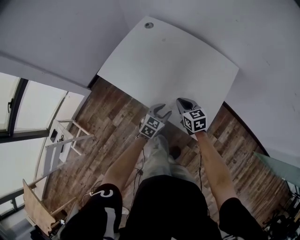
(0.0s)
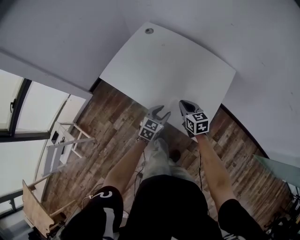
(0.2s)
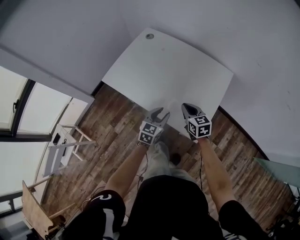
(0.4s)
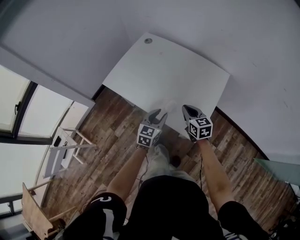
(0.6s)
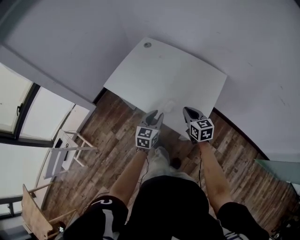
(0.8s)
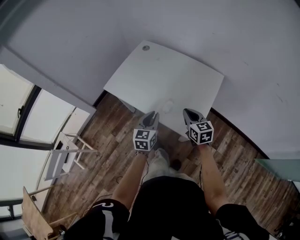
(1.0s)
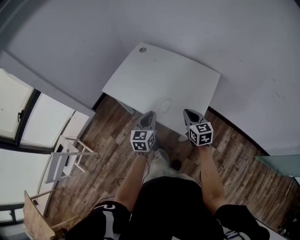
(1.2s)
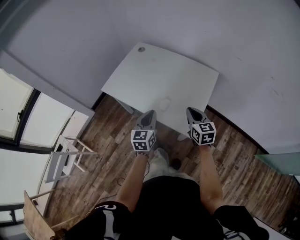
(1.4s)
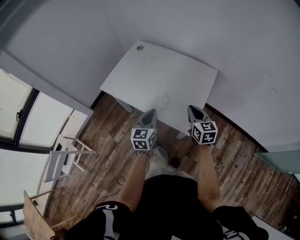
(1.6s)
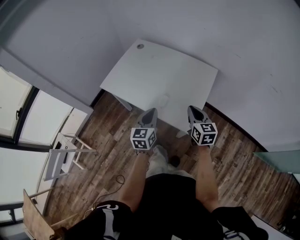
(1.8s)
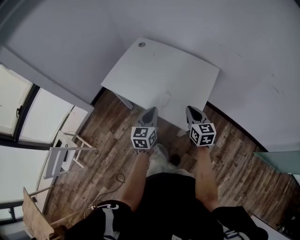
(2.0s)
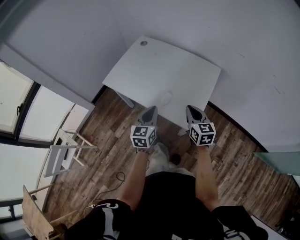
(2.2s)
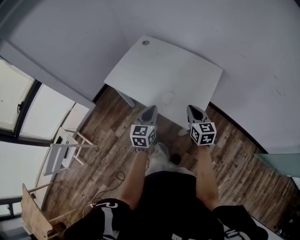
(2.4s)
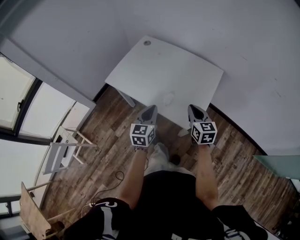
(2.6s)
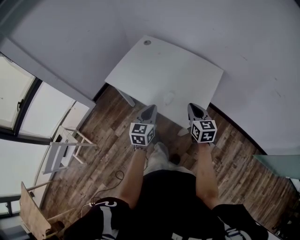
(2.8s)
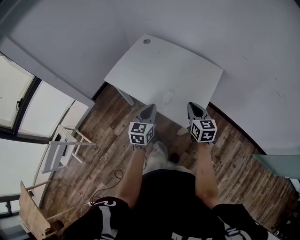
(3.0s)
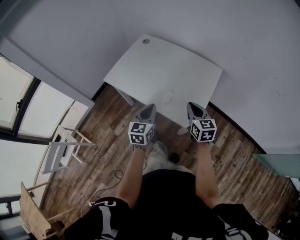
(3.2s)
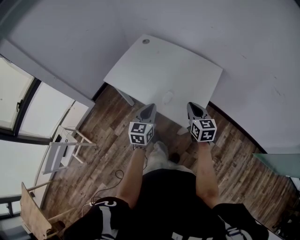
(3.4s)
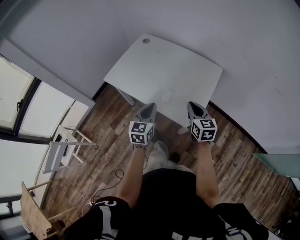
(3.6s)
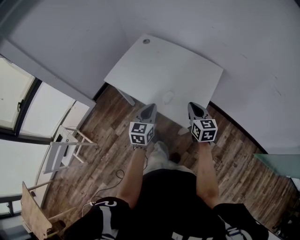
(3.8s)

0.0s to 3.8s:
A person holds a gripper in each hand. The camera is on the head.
0.0s to 1.2s: The left gripper heads upward, covering roughly 20 cm, changes its angle by roughly 30 degrees, and closes up, while the right gripper travels upward, backward and to the right by some 20 cm.
1.2s to 2.6s: The grippers move only a little.
2.6s to 3.8s: Both grippers stay put.

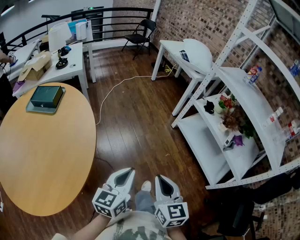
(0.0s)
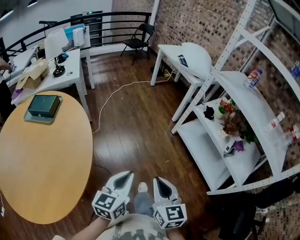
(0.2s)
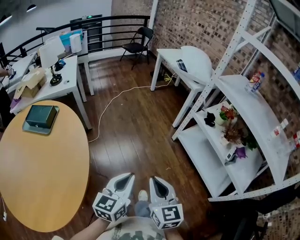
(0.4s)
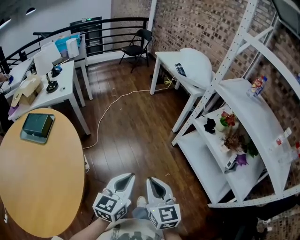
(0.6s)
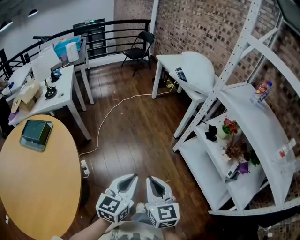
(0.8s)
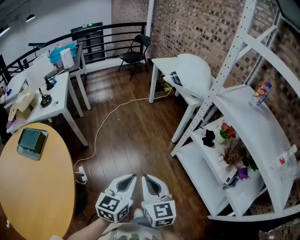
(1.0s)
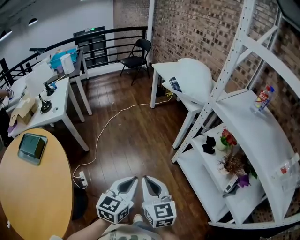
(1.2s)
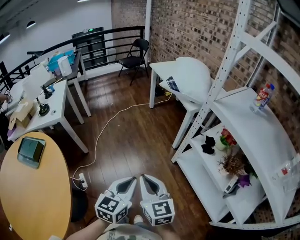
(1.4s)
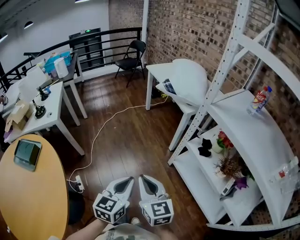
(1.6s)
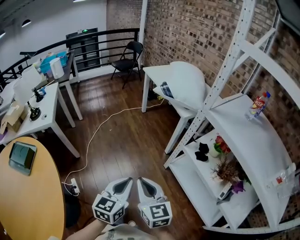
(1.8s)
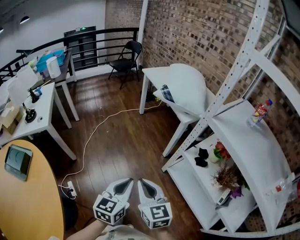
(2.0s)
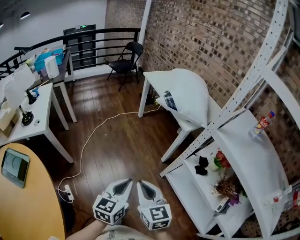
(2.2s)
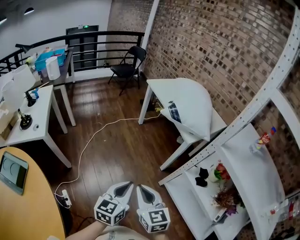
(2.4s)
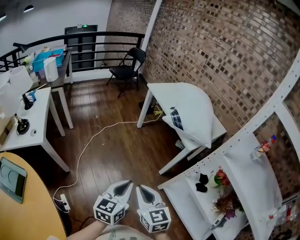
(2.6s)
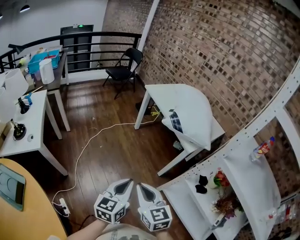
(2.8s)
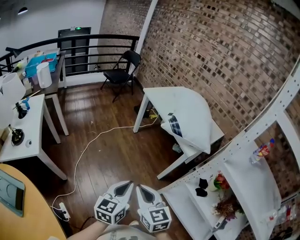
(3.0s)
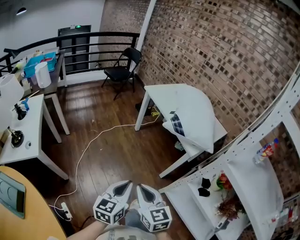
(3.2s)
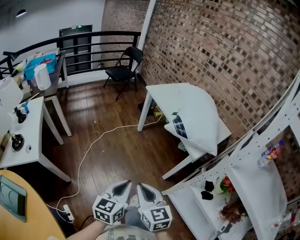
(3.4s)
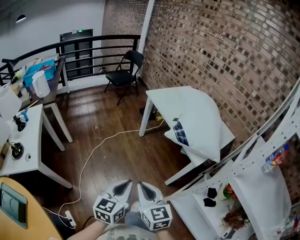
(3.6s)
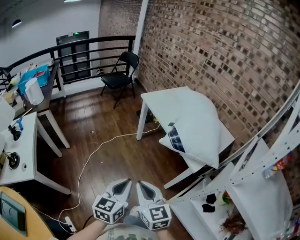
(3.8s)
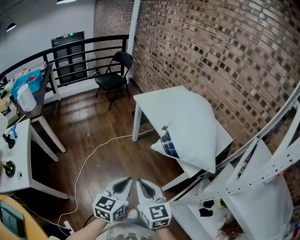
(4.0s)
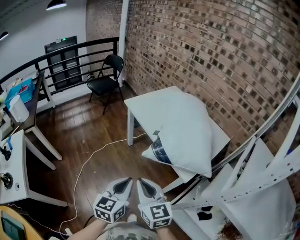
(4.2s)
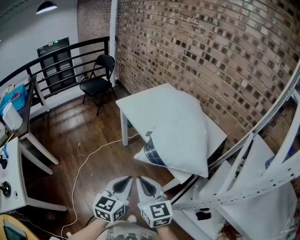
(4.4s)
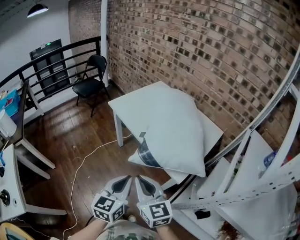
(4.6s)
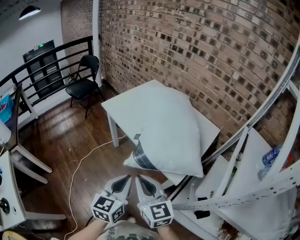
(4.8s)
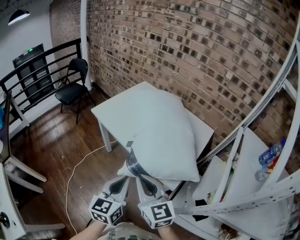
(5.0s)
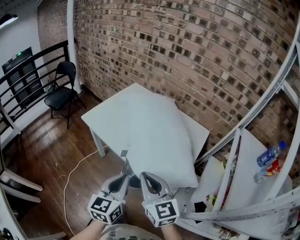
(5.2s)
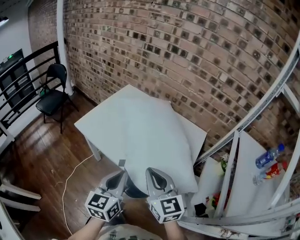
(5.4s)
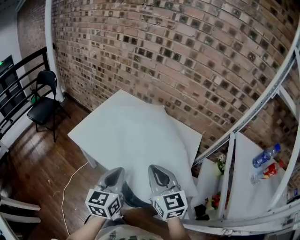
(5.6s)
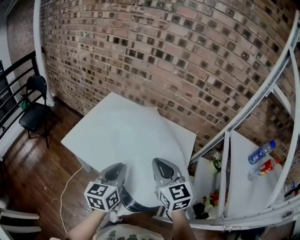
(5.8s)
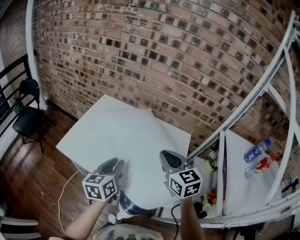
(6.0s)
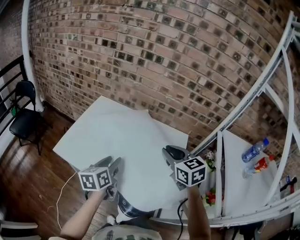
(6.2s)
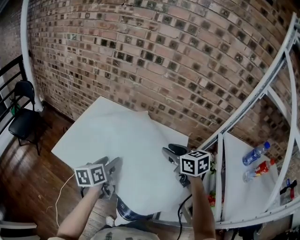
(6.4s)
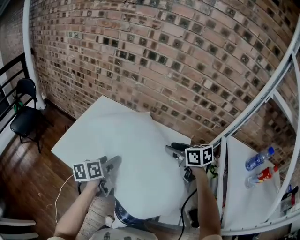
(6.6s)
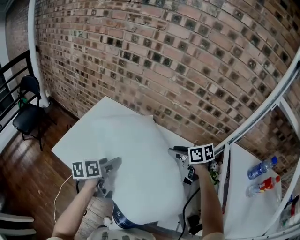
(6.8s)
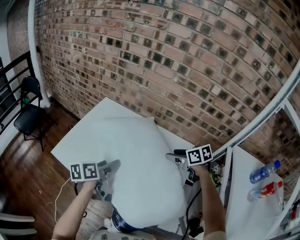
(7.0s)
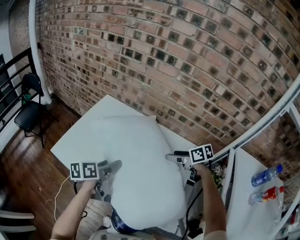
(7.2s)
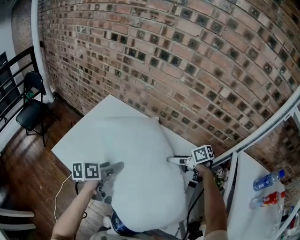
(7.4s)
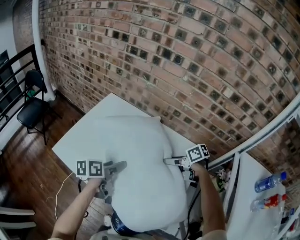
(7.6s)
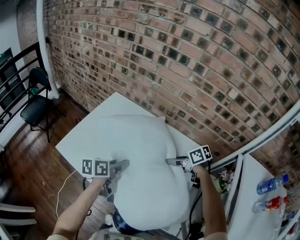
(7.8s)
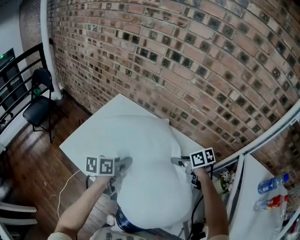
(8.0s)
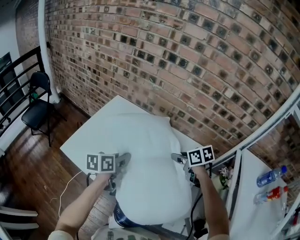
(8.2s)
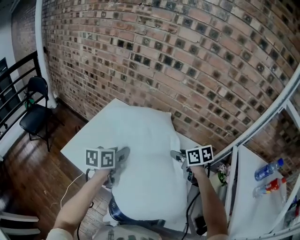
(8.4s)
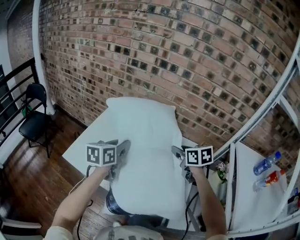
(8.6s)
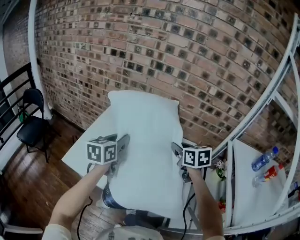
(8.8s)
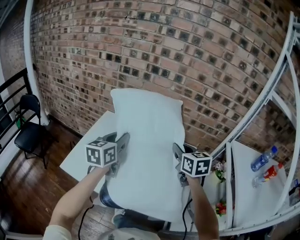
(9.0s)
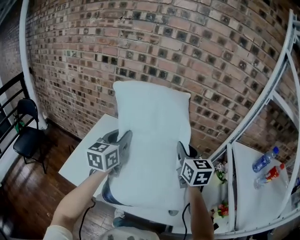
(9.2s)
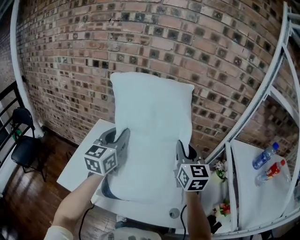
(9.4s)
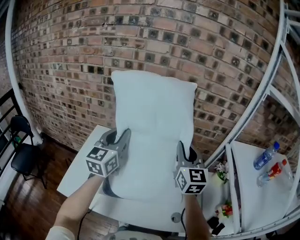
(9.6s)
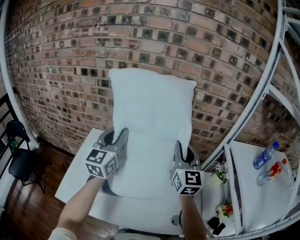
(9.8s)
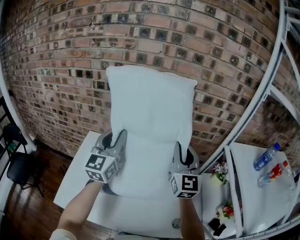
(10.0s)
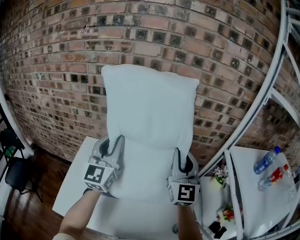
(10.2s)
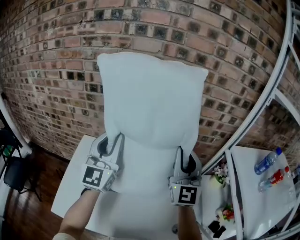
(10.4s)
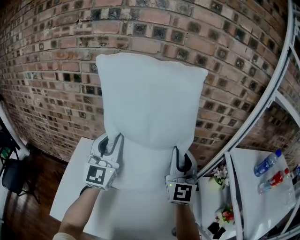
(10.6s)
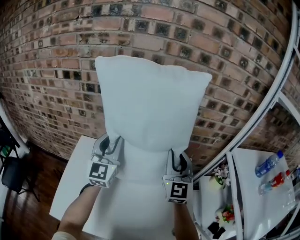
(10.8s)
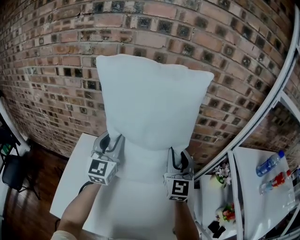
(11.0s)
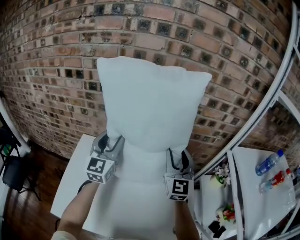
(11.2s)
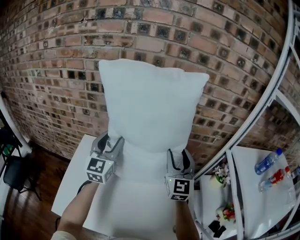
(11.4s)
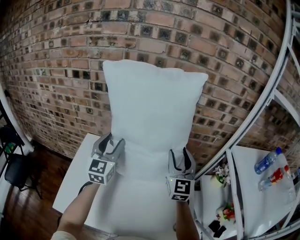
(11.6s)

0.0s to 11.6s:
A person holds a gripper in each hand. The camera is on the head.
0.0s to 1.4s: The left gripper travels forward and to the right by some 35 cm; the right gripper travels forward by some 35 cm.
1.4s to 2.8s: The left gripper travels forward by roughly 30 cm; the right gripper moves forward and to the left, roughly 30 cm.
2.8s to 4.4s: Both grippers move forward and to the right, about 35 cm.
4.4s to 5.8s: The right gripper moves roughly 35 cm, and turns by roughly 30 degrees; the left gripper changes place by approximately 35 cm, and rotates approximately 20 degrees.
5.8s to 7.2s: The left gripper shifts roughly 15 cm forward and downward, swivels approximately 40 degrees, and opens up, while the right gripper goes about 30 cm forward, to the right and downward, swivels some 50 degrees, and opens up.
7.2s to 8.8s: The right gripper goes approximately 10 cm upward and to the left, turns by about 40 degrees, and closes, while the left gripper travels upward and forward by some 15 cm, changes its angle by about 40 degrees, and closes its fingers.
8.8s to 10.2s: The left gripper heads forward and upward, covering roughly 20 cm, and points its fingers some 30 degrees further upward, while the right gripper moves upward and forward, approximately 15 cm, and tips its fingers upward by about 50 degrees.
10.2s to 11.6s: The two grippers go about 5 cm downward. The right gripper opens up.

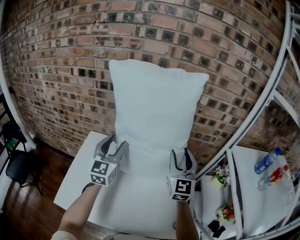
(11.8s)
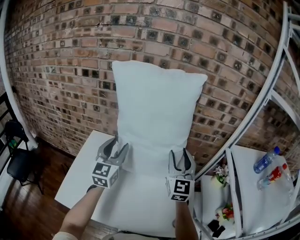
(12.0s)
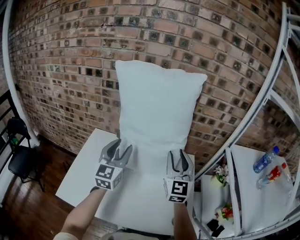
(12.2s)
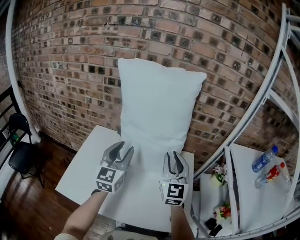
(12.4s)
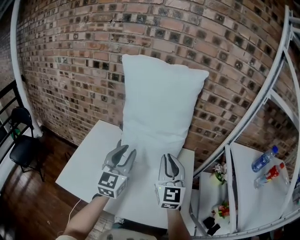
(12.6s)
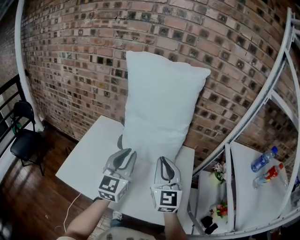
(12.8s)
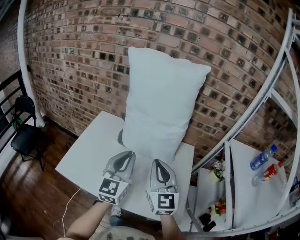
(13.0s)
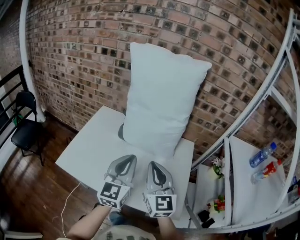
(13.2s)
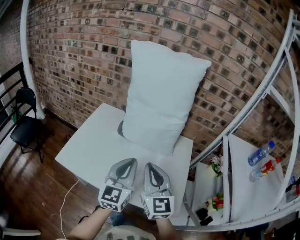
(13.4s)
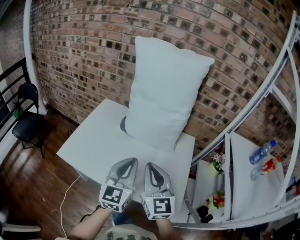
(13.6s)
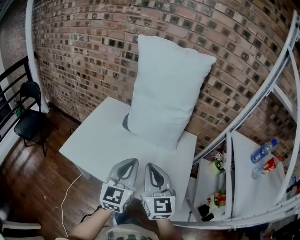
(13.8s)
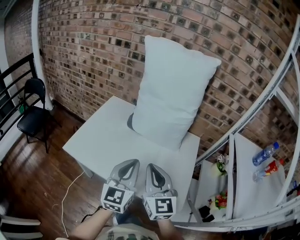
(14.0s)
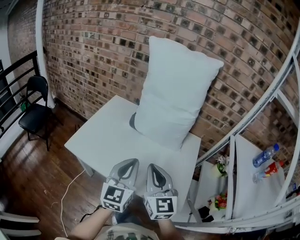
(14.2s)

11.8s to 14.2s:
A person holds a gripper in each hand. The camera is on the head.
11.8s to 13.0s: The right gripper goes approximately 20 cm backward and to the left, and closes, while the left gripper is displaced backward by roughly 20 cm, and closes up.
13.0s to 14.2s: The two grippers go some 10 cm backward.

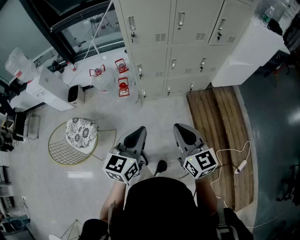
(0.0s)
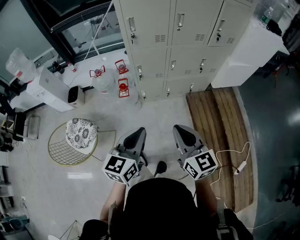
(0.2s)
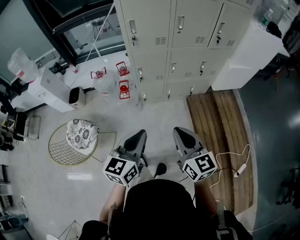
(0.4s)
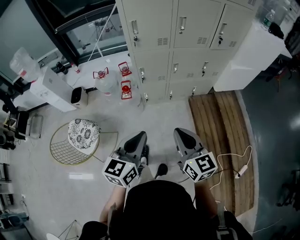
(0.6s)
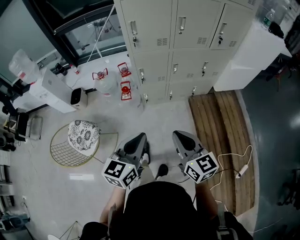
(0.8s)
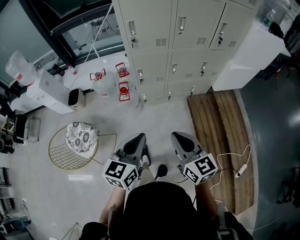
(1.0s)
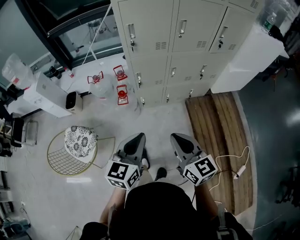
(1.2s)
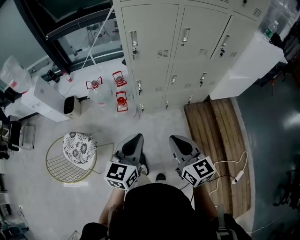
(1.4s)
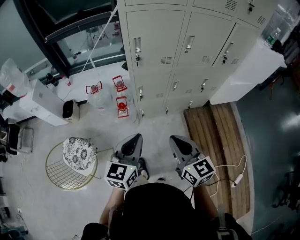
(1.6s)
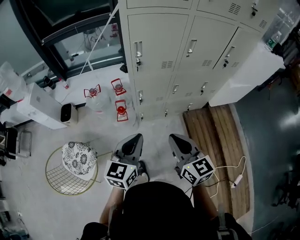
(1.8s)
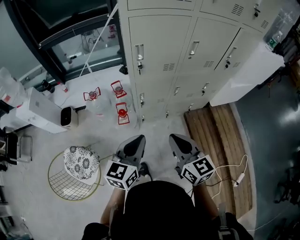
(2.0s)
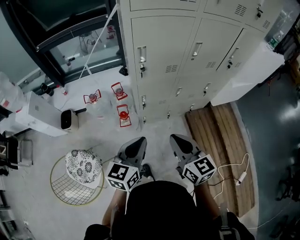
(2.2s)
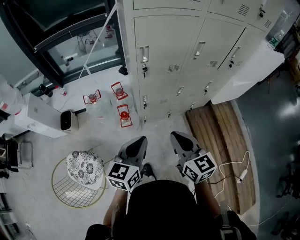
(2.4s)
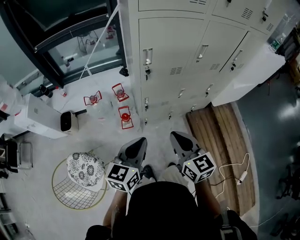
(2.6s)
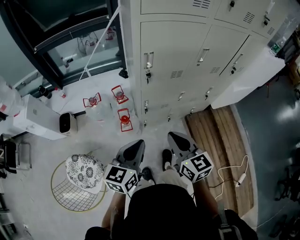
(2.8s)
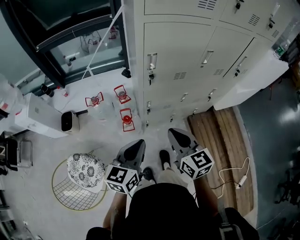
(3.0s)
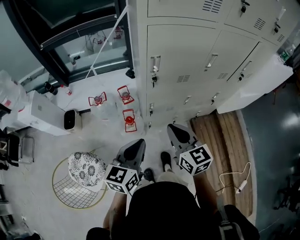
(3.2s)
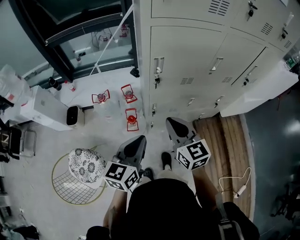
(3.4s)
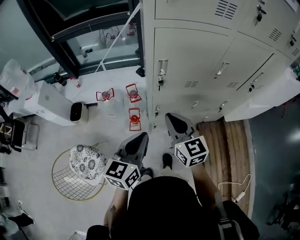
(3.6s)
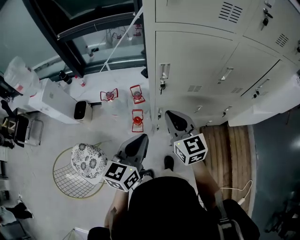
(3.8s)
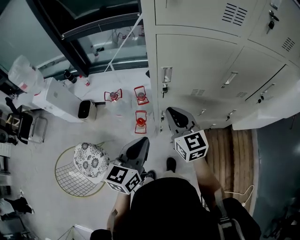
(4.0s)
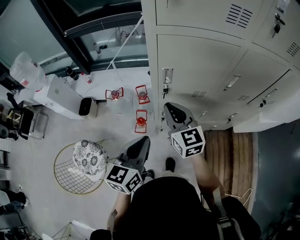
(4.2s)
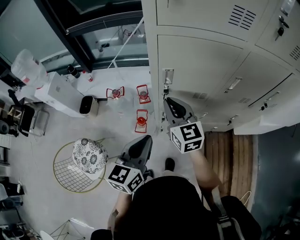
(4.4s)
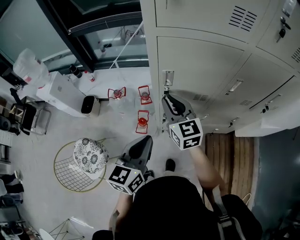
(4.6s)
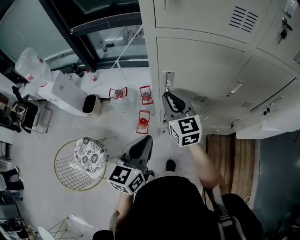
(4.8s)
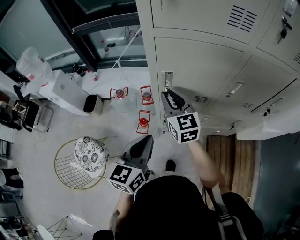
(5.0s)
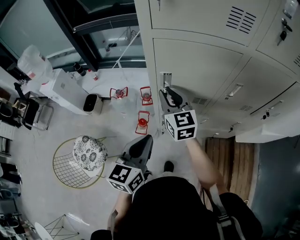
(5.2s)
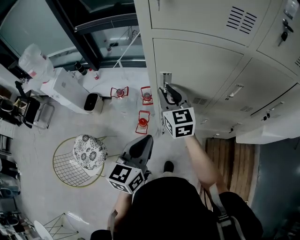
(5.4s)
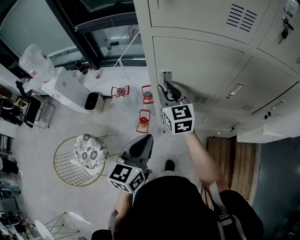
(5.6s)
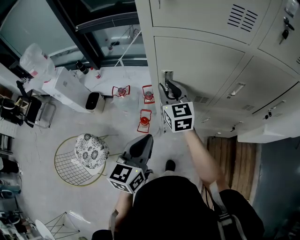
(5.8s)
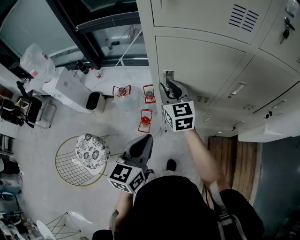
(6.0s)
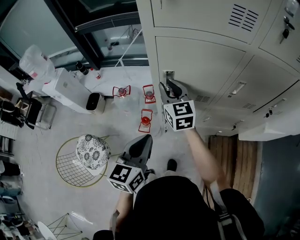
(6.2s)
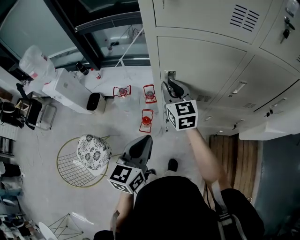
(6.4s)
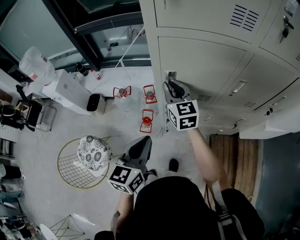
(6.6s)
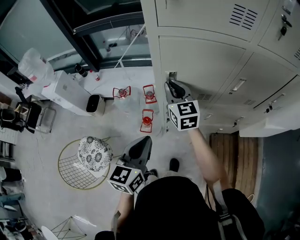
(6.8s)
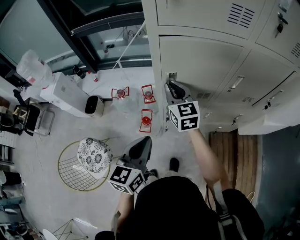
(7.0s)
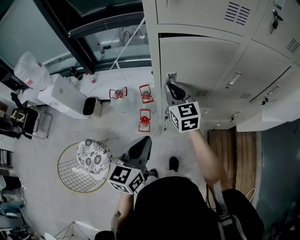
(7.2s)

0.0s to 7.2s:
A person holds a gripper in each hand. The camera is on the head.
0.0s to 1.4s: The grippers both shift forward by approximately 10 cm.
1.4s to 2.8s: Both grippers move forward and to the left, some 20 cm.
2.8s to 4.4s: The right gripper heads forward, covering roughly 25 cm. Meanwhile the left gripper moves forward, roughly 10 cm.
4.4s to 5.8s: The right gripper shifts about 10 cm forward.
5.8s to 7.2s: The grippers make only small movements.
